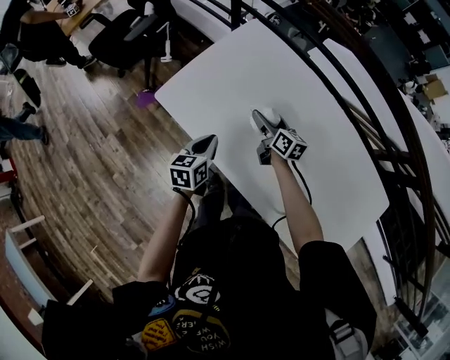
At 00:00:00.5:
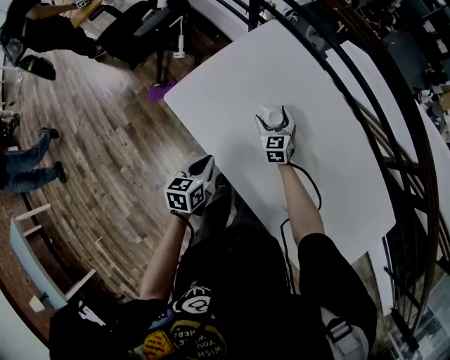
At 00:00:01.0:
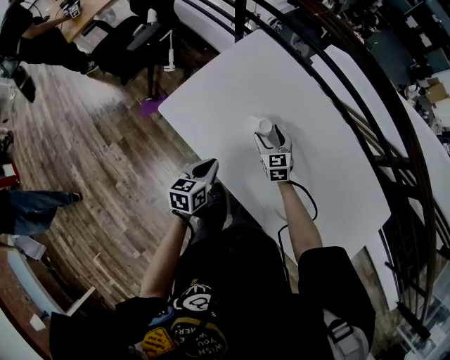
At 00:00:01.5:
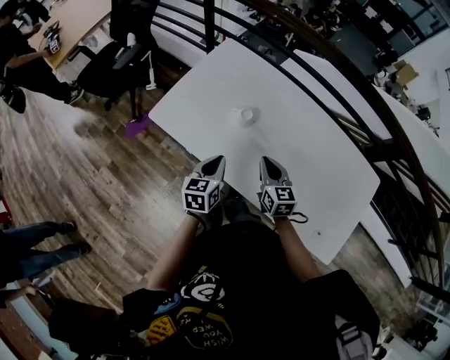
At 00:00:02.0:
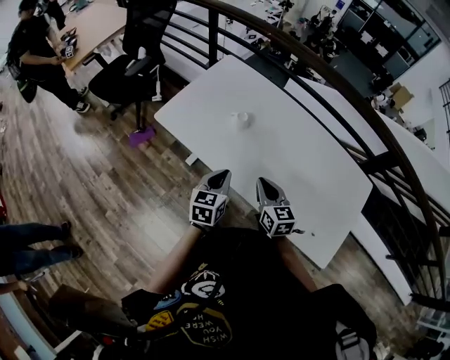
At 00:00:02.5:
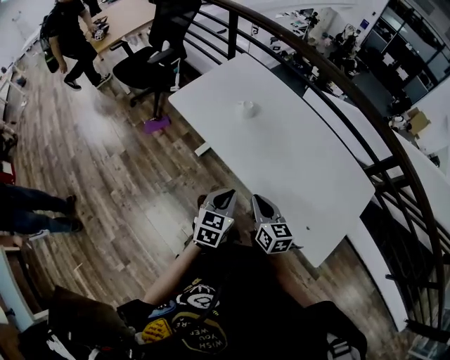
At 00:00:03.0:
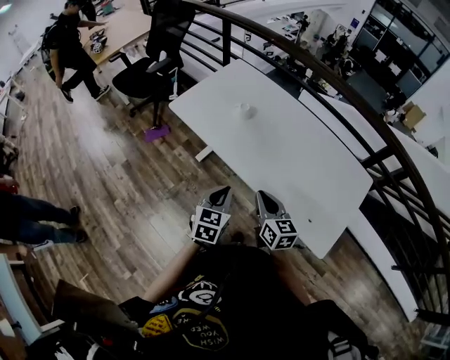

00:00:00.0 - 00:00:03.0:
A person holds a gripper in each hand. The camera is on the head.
00:00:00.0 - 00:00:01.5: The left gripper moves backward, some 5 cm; the right gripper moves backward and upward, roughly 20 cm, changes its angle by roughly 30 degrees, and closes up.
00:00:01.5 - 00:00:03.0: Both grippers travel together backward, some 25 cm.

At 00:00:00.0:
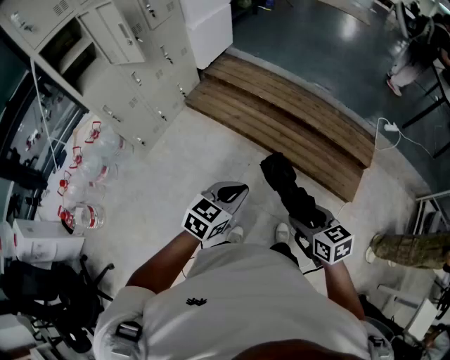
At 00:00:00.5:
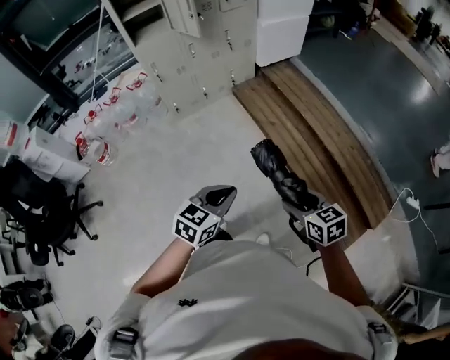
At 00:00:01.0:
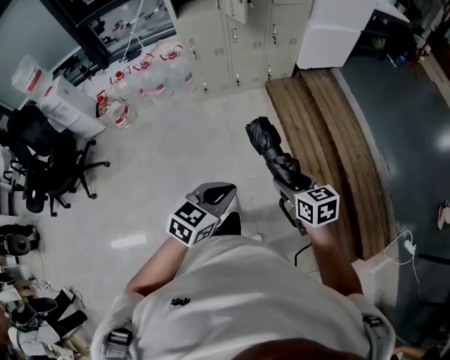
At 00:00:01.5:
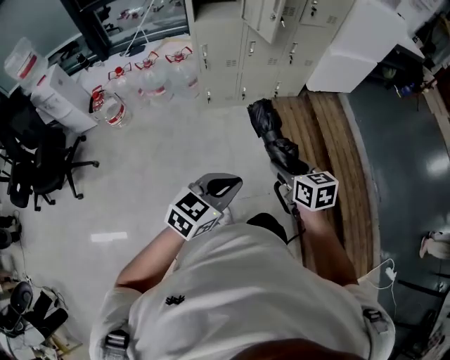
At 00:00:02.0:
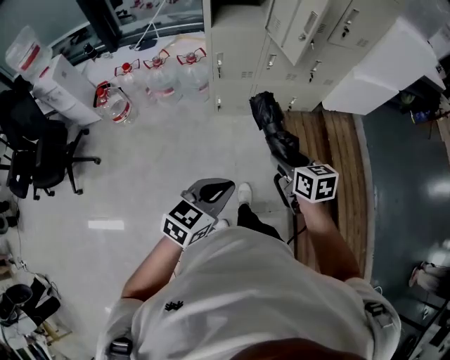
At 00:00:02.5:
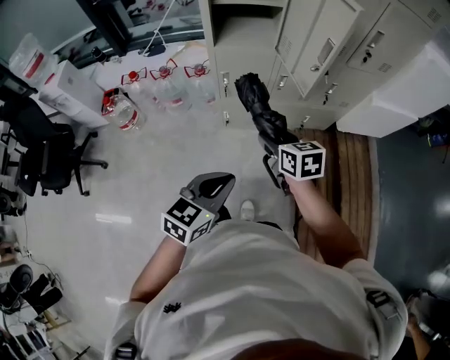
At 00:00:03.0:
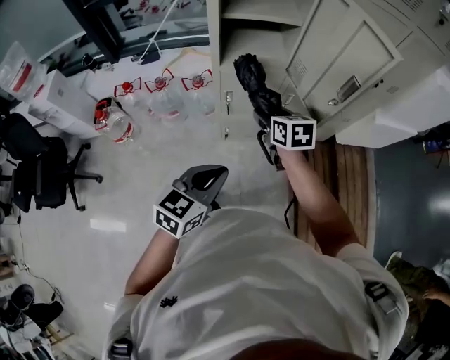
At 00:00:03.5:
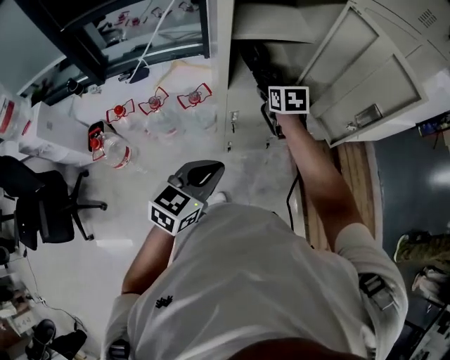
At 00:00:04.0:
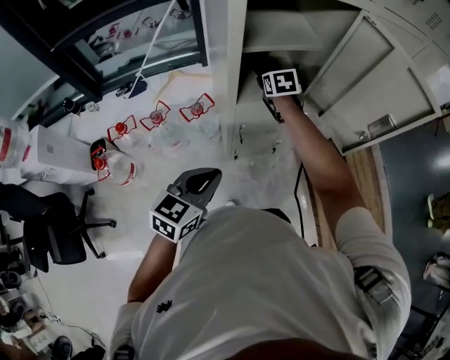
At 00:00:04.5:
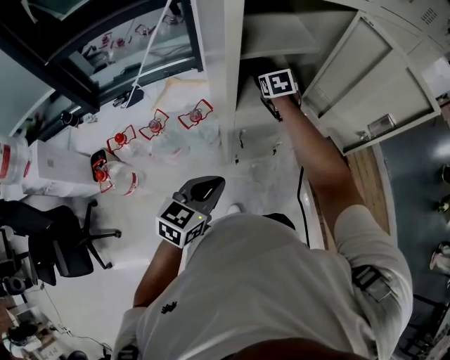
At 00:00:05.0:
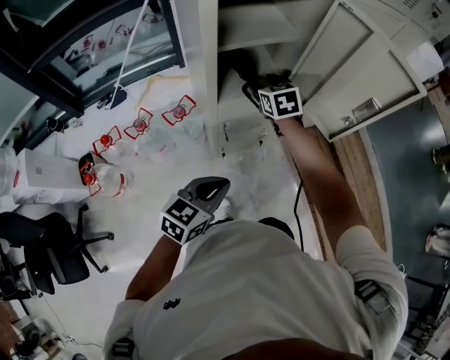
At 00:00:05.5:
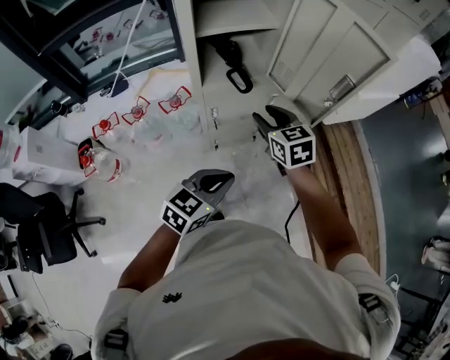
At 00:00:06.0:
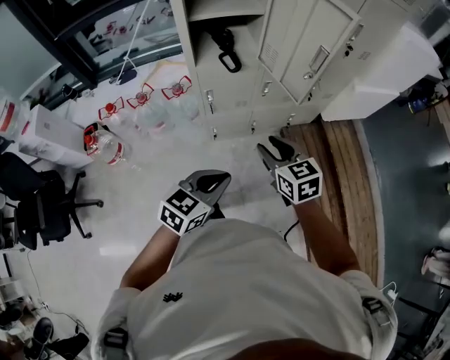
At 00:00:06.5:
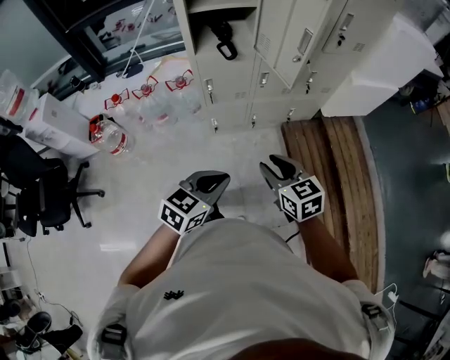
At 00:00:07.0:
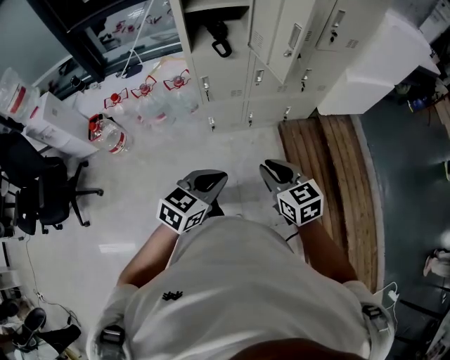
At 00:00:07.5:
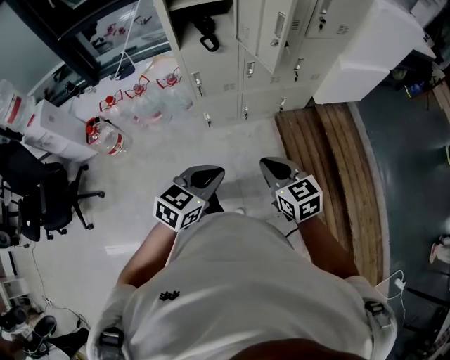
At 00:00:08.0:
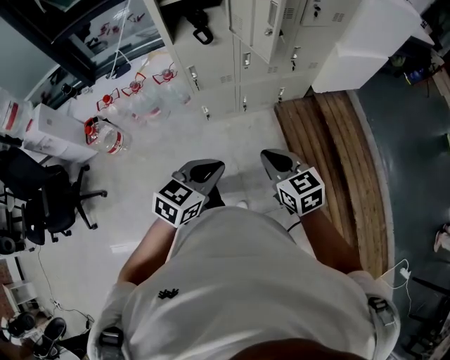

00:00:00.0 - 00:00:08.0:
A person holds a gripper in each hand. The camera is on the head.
00:00:00.0 - 00:00:02.0: The left gripper changes place by about 30 cm, and changes its angle by about 50 degrees; the right gripper shifts by some 60 cm, and rotates about 40 degrees.
00:00:02.0 - 00:00:04.0: The two grippers travel together, forward and to the left, approximately 60 cm. The right gripper rotates about 20 degrees.
00:00:04.0 - 00:00:06.0: The right gripper moves backward and to the right, roughly 40 cm, and turns by some 20 degrees, while the left gripper travels to the right and backward by approximately 25 cm.
00:00:06.0 - 00:00:08.0: Both grippers travel together backward and to the right, approximately 15 cm. The right gripper closes up.

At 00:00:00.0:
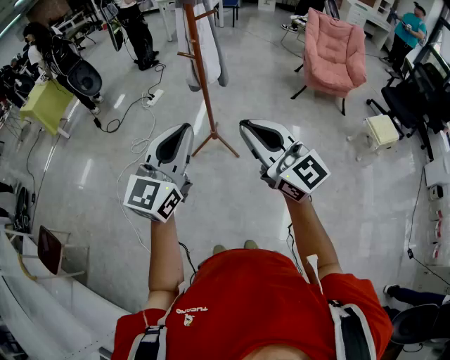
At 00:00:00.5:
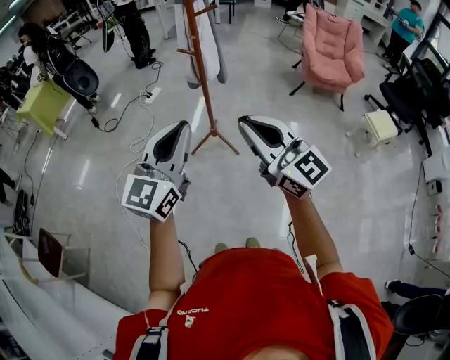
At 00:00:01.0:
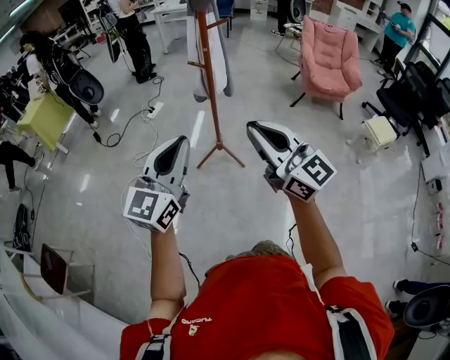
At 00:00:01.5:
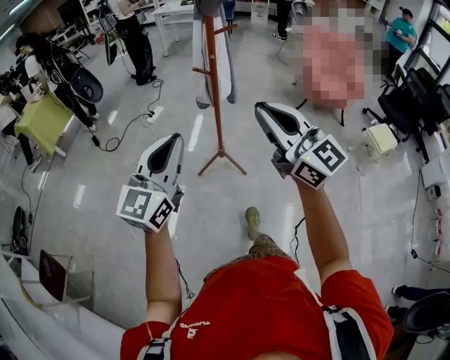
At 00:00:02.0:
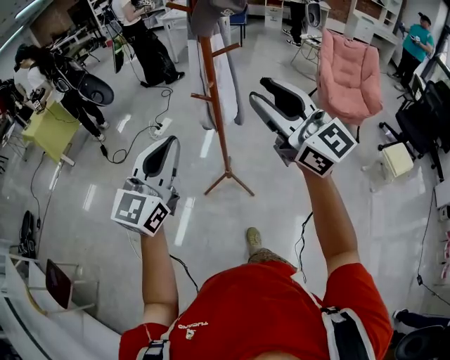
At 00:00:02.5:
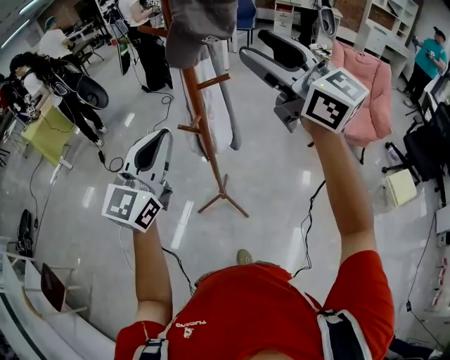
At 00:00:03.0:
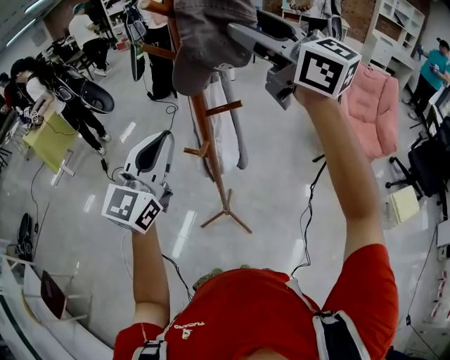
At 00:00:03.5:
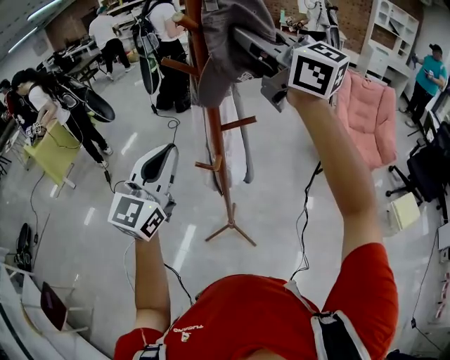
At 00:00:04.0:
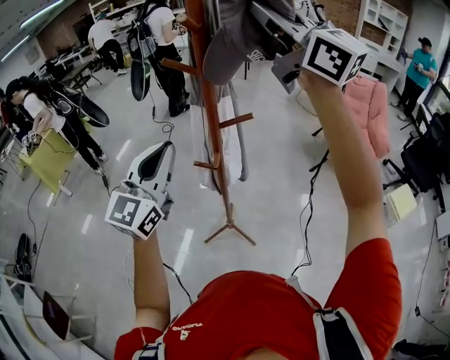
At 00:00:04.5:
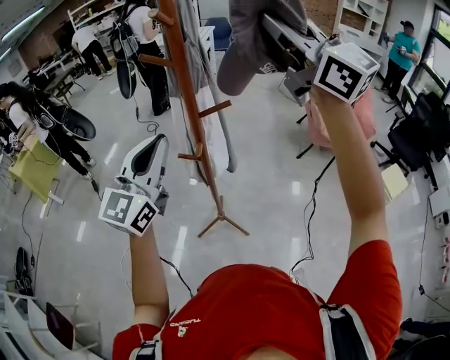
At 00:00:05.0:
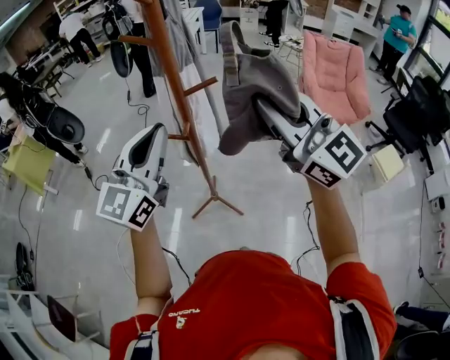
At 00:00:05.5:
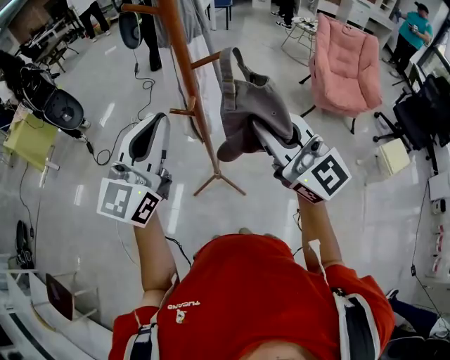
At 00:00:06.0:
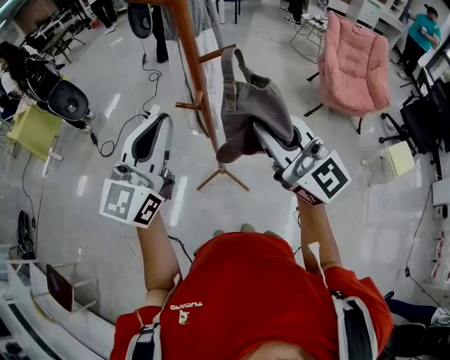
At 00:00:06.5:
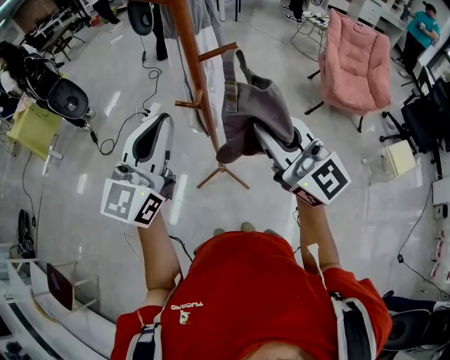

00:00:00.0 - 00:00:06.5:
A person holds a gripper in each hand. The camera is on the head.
00:00:00.0 - 00:00:02.0: The two grippers go approximately 25 cm forward. The right gripper opens its fingers.
00:00:02.0 - 00:00:04.5: The left gripper travels forward by roughly 20 cm, while the right gripper moves forward, upward and to the right, roughly 30 cm, and closes its fingers.
00:00:04.5 - 00:00:06.5: The right gripper shifts about 30 cm downward and backward; the left gripper goes about 5 cm downward.

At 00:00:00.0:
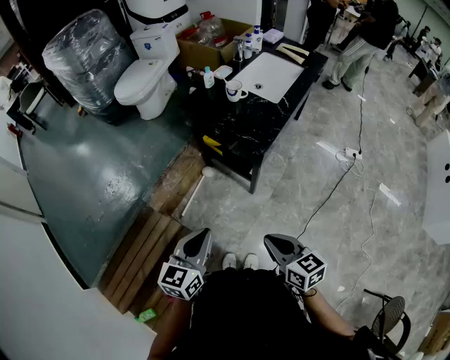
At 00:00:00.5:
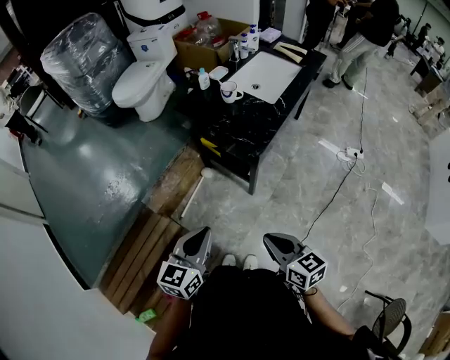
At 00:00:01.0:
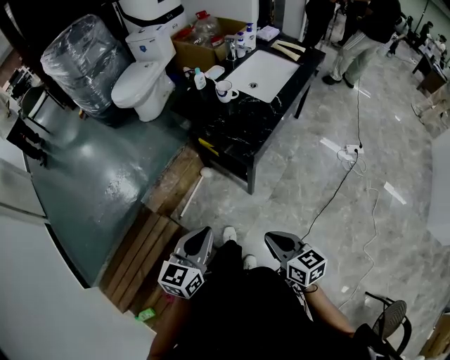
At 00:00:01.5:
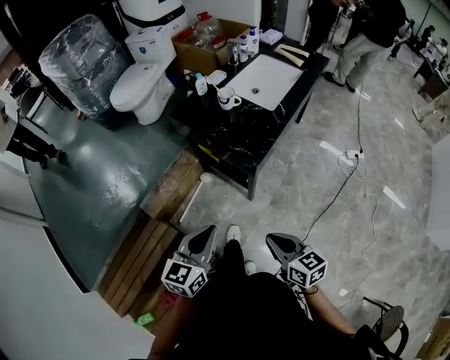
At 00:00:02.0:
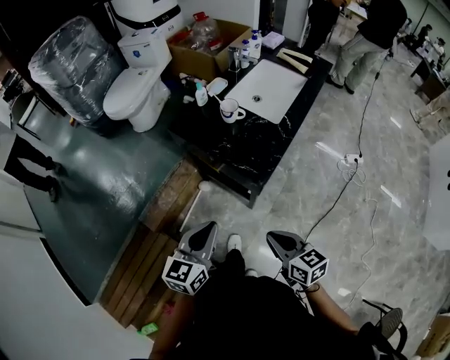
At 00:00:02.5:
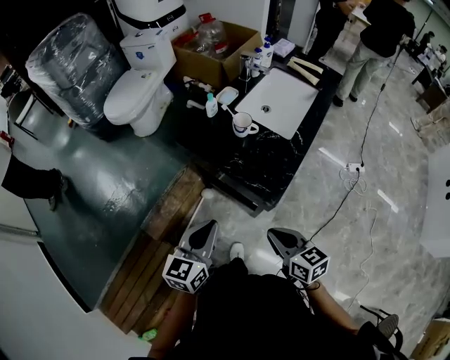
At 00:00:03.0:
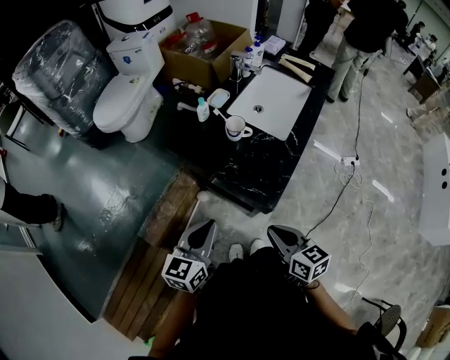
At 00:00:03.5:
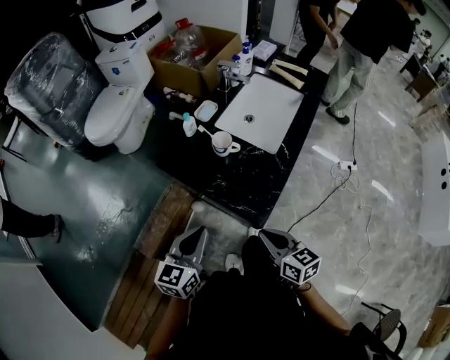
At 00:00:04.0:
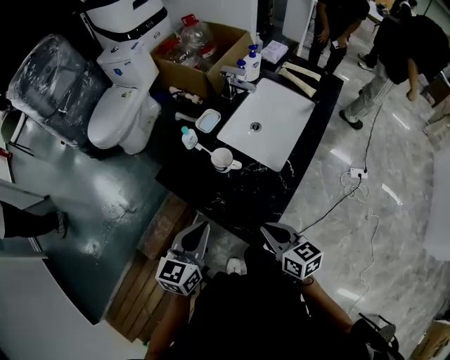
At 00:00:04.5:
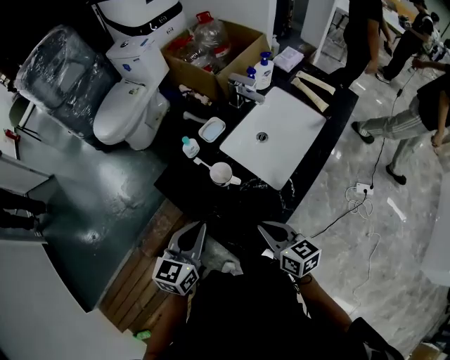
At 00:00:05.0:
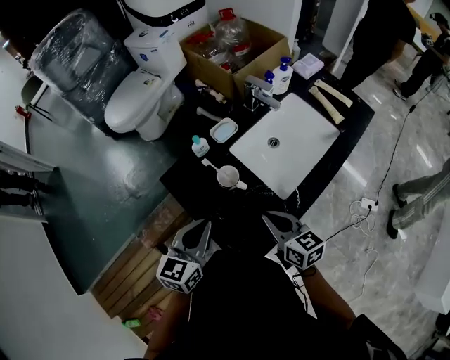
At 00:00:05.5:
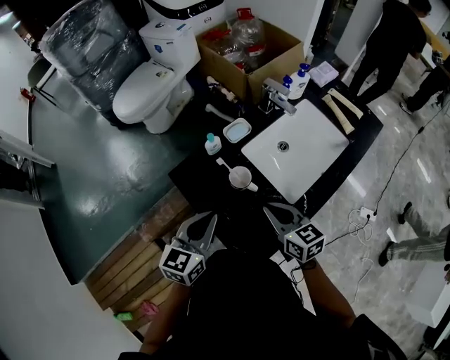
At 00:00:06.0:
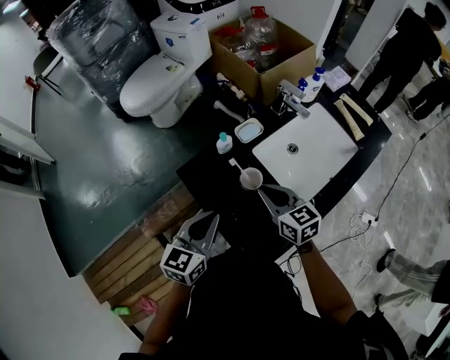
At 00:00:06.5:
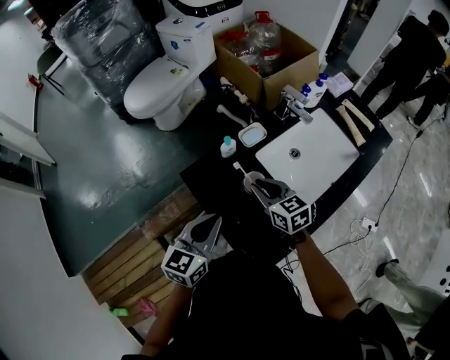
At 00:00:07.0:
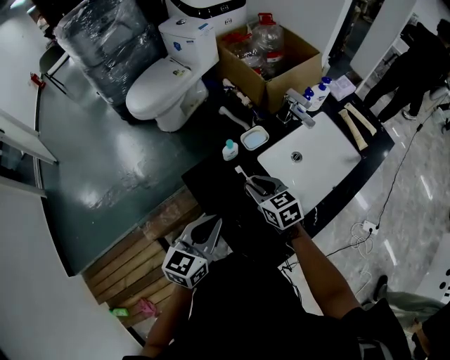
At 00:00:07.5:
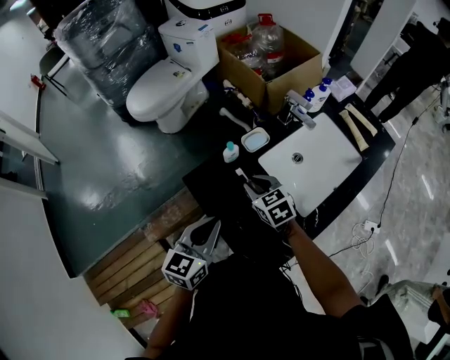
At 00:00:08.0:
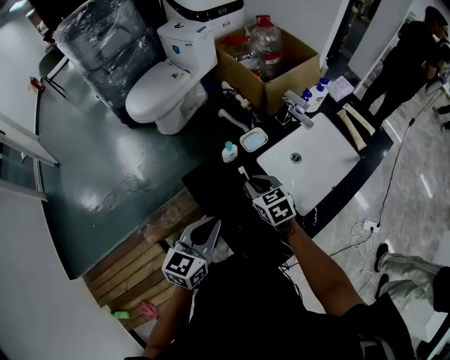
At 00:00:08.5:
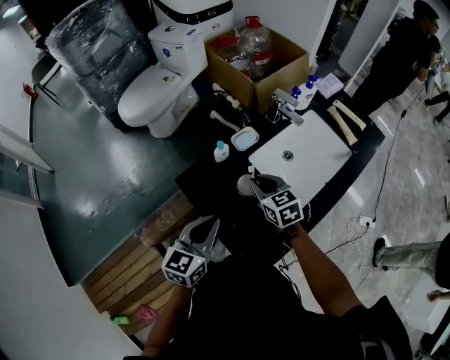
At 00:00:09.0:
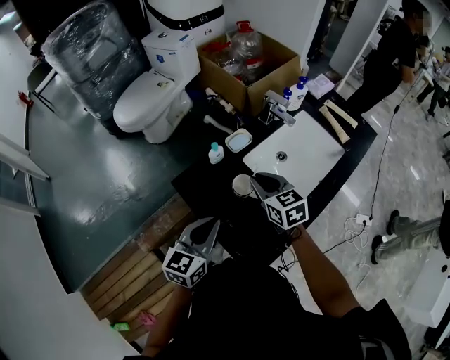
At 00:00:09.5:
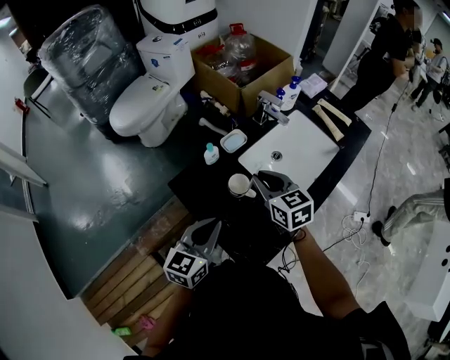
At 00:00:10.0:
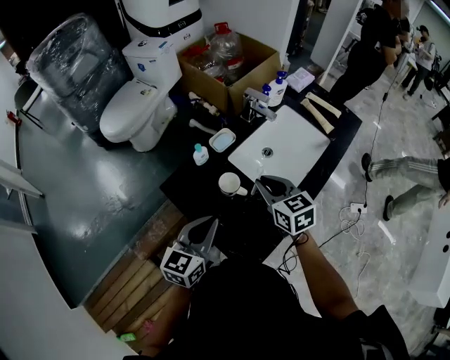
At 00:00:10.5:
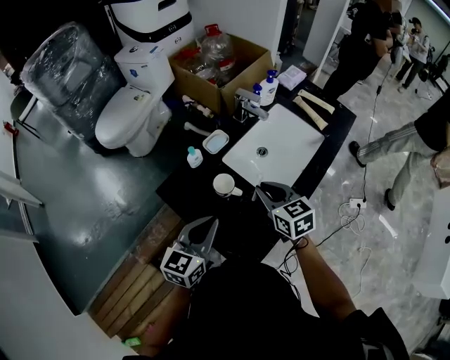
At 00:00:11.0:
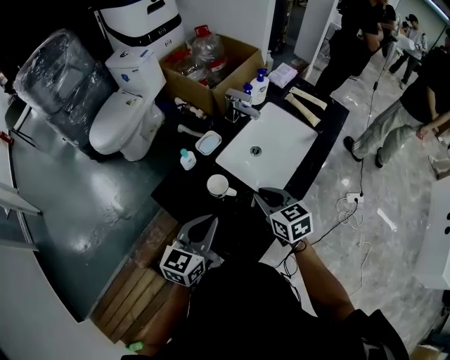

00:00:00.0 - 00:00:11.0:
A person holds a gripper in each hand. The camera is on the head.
00:00:00.0 - 00:00:02.0: The two grippers go approximately 15 cm forward.
00:00:02.0 - 00:00:03.5: The grippers both shift forward by approximately 15 cm.
00:00:03.5 - 00:00:05.5: The right gripper heads forward, covering roughly 25 cm, and rotates some 20 degrees, while the left gripper travels forward and to the right by approximately 20 cm.
00:00:05.5 - 00:00:07.5: The right gripper is displaced forward and to the left by roughly 15 cm, and changes its angle by some 20 degrees.
00:00:07.5 - 00:00:09.0: The right gripper is displaced upward and to the right by about 10 cm.
00:00:09.0 - 00:00:11.0: The right gripper moves to the right and backward, roughly 10 cm; the left gripper moves to the right, about 5 cm.